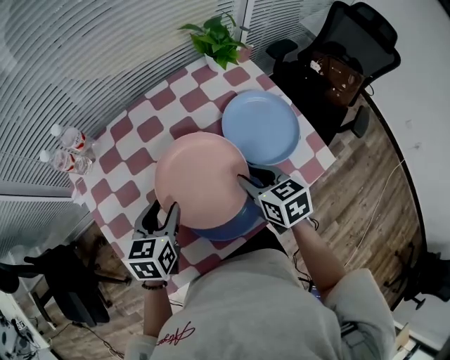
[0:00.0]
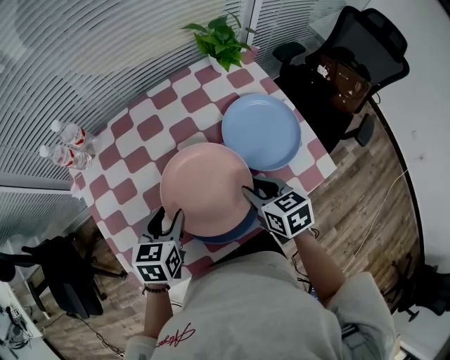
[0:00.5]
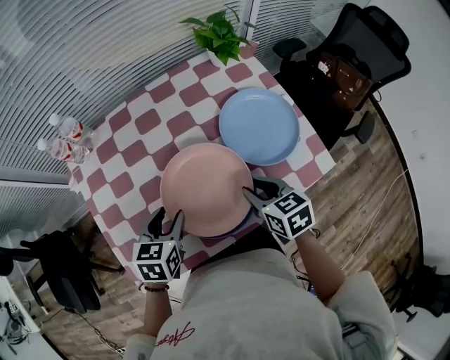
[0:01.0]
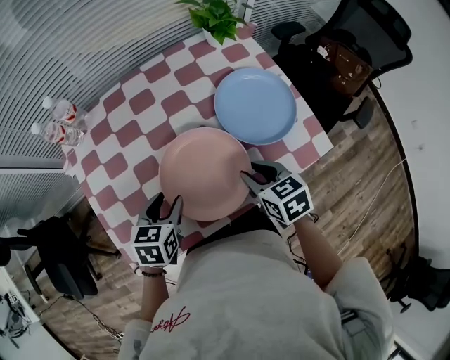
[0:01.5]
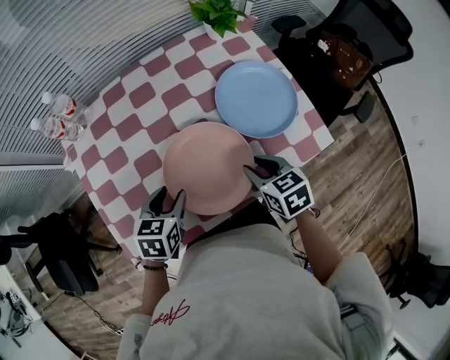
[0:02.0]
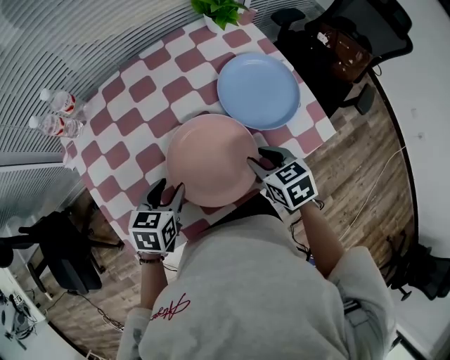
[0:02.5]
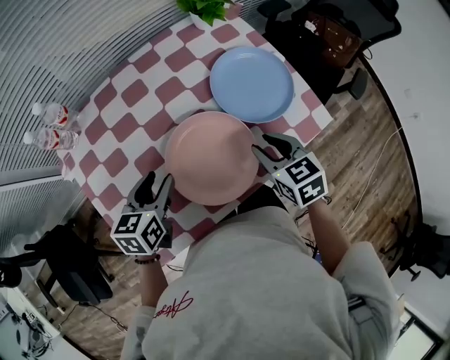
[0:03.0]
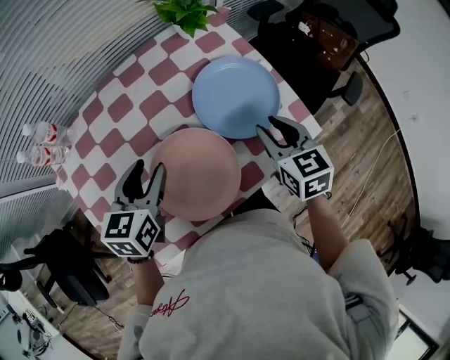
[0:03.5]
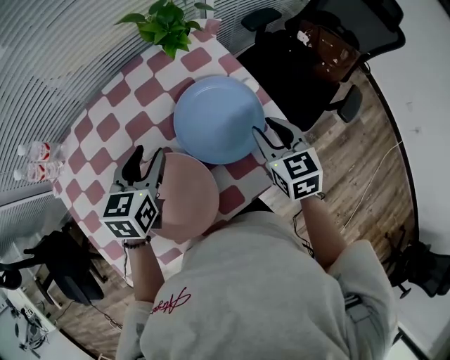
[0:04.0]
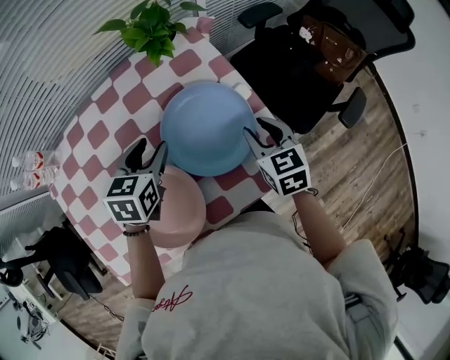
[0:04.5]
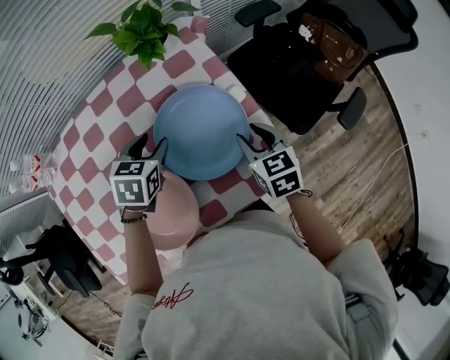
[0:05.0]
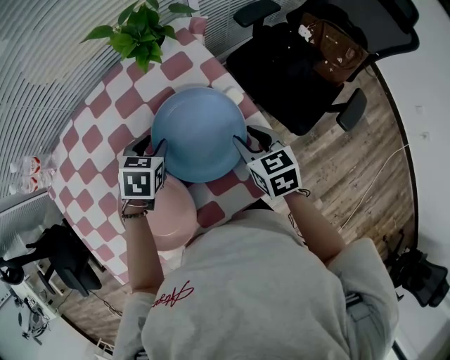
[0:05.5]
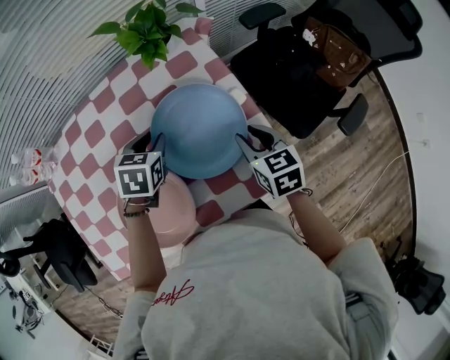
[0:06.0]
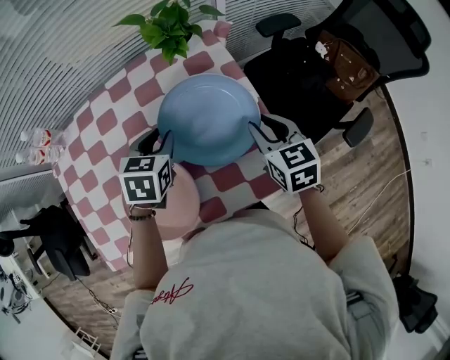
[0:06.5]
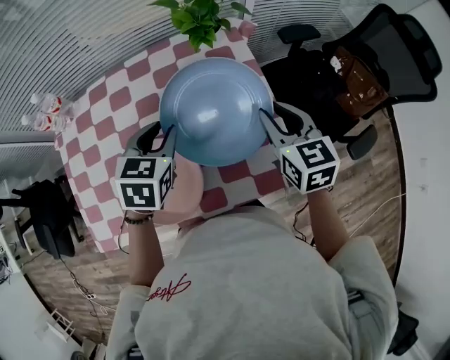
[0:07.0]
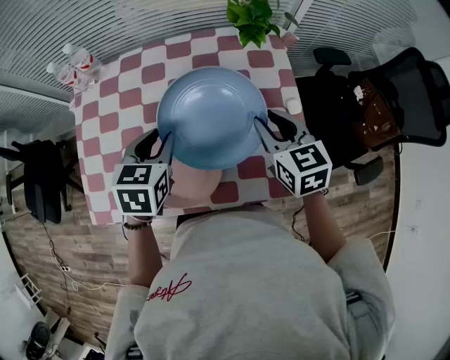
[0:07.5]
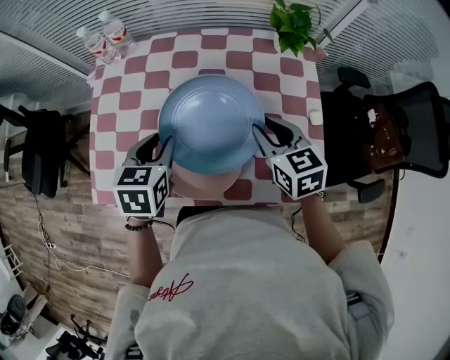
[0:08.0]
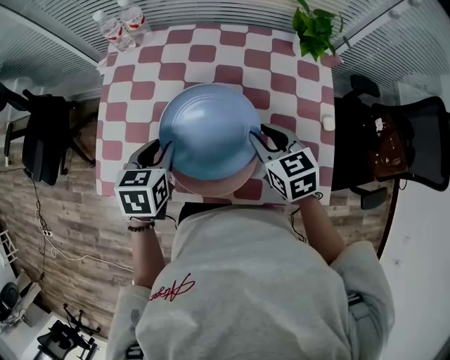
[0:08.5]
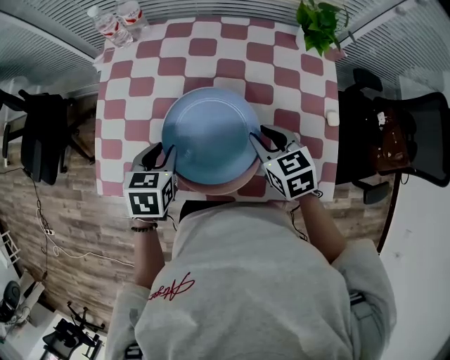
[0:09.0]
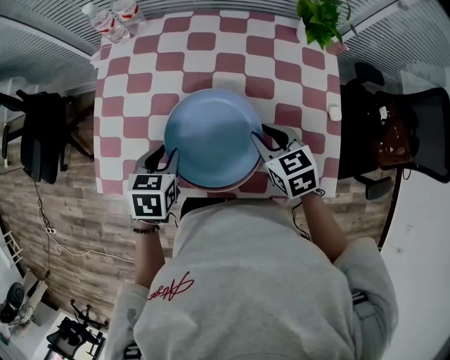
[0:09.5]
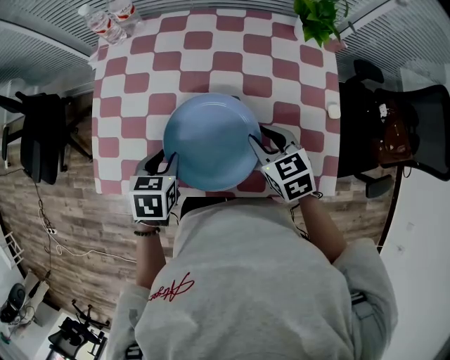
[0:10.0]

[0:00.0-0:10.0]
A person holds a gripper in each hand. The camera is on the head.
0:00.0 to 0:02.0: Both grippers move backward, about 5 cm.
0:02.0 to 0:04.0: The left gripper goes roughly 25 cm forward, to the right and upward. The right gripper shifts roughly 20 cm to the right, forward and upward, and changes its angle by approximately 20 degrees.
0:04.0 to 0:06.0: The right gripper goes about 5 cm downward. The left gripper is displaced downward, to the right and forward by approximately 15 cm, and swivels approximately 20 degrees.
0:06.0 to 0:08.0: The left gripper changes place by approximately 25 cm, and turns by roughly 30 degrees. The right gripper moves about 20 cm, and turns by approximately 30 degrees.
0:08.0 to 0:10.0: The right gripper moves downward and to the left, roughly 10 cm, while the left gripper travels downward, backward and to the left by some 10 cm.

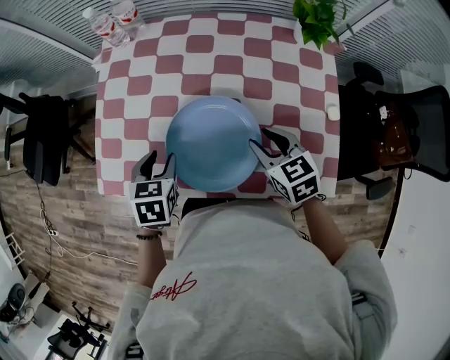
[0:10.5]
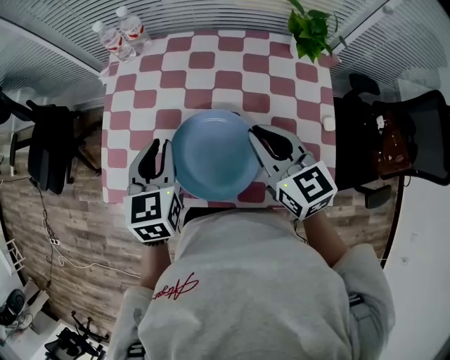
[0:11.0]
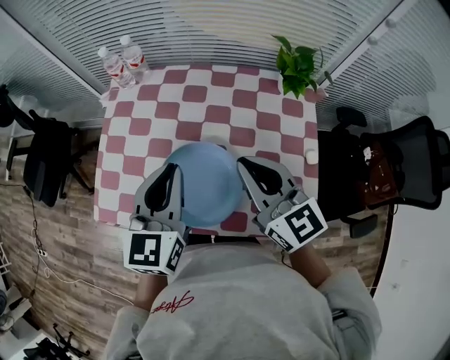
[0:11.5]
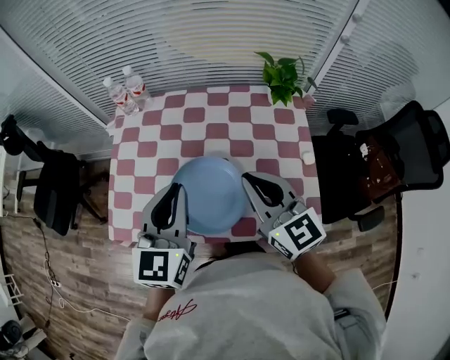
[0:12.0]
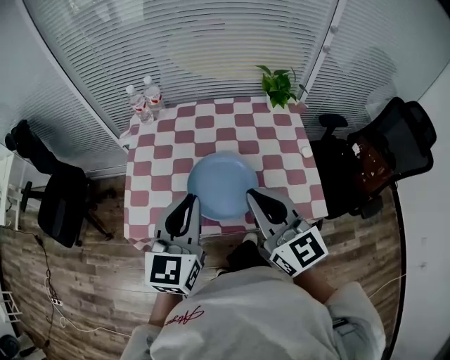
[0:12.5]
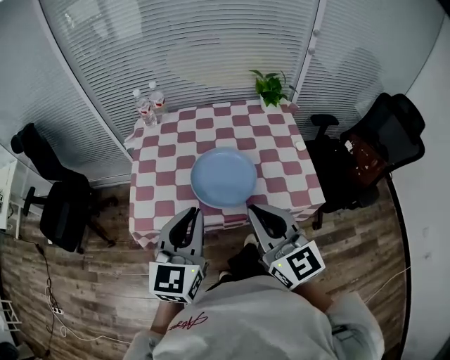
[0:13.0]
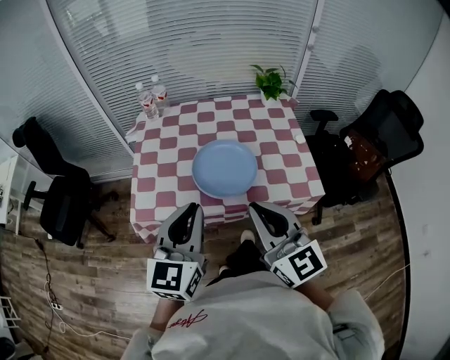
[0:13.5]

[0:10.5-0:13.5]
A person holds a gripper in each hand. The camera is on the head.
0:10.5 to 0:12.0: The grippers both shift upward by approximately 20 cm. The right gripper tilts its fingers roughly 30 degrees upward, and closes up, while the left gripper tilts its fingers some 40 degrees upward, and closes its fingers.
0:12.0 to 0:13.5: The left gripper travels backward by about 20 cm; the right gripper goes approximately 25 cm backward and to the left.

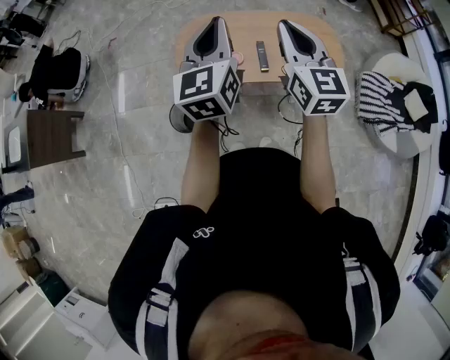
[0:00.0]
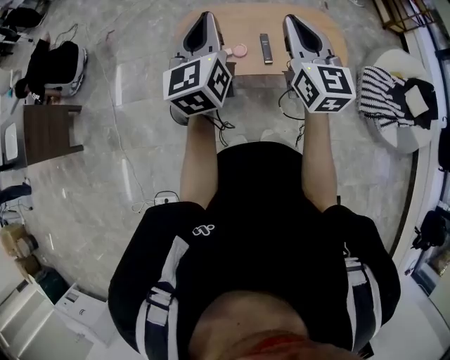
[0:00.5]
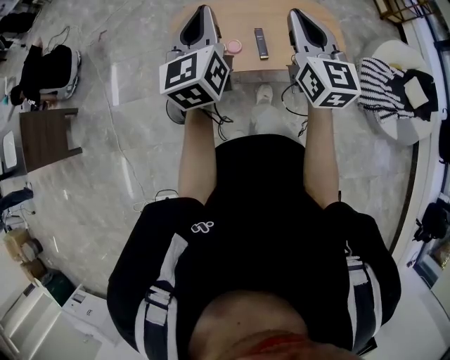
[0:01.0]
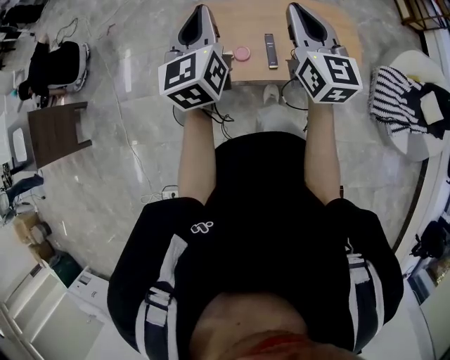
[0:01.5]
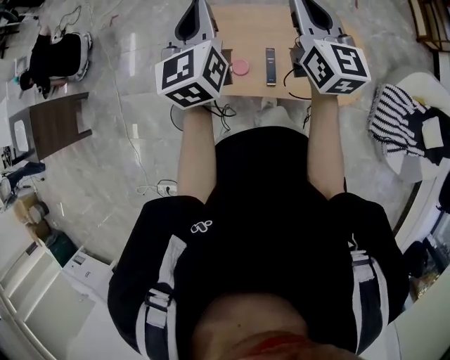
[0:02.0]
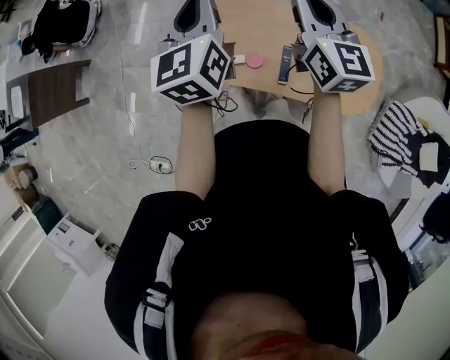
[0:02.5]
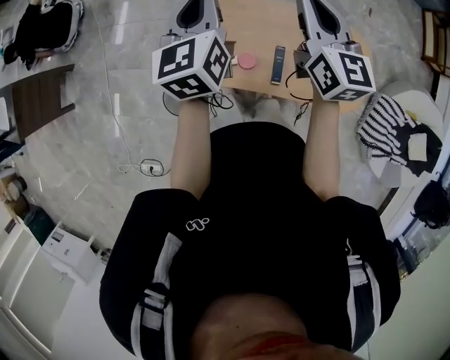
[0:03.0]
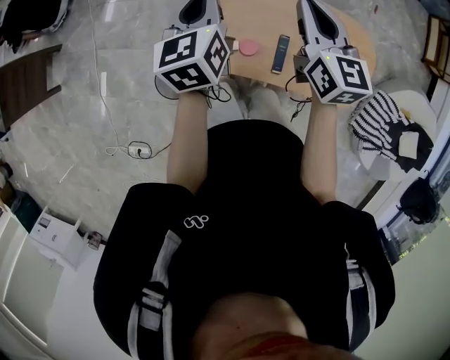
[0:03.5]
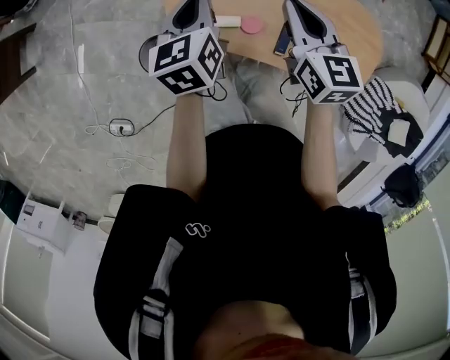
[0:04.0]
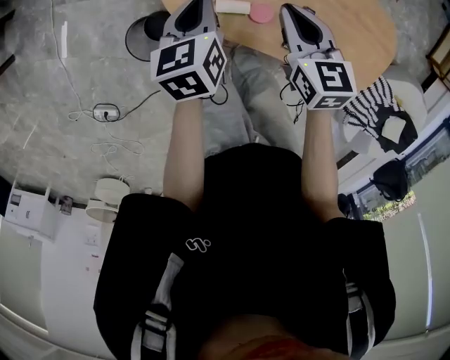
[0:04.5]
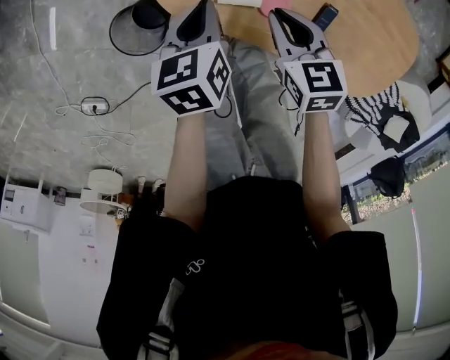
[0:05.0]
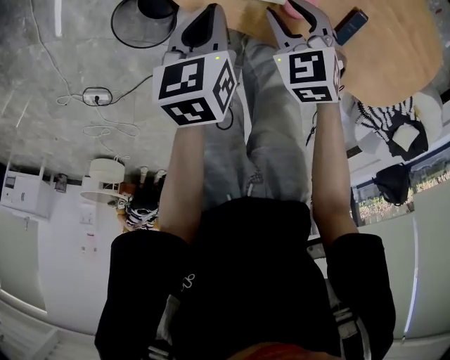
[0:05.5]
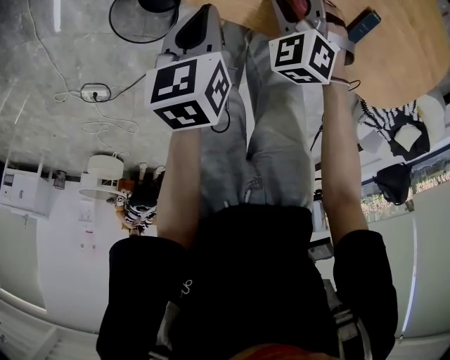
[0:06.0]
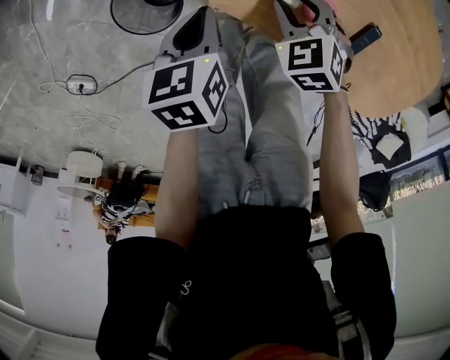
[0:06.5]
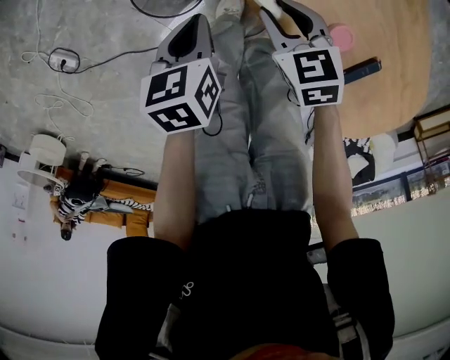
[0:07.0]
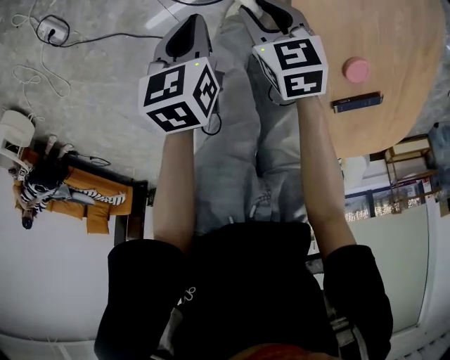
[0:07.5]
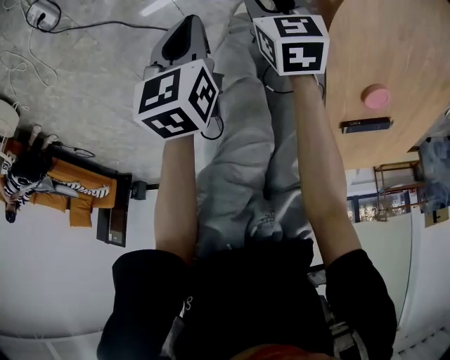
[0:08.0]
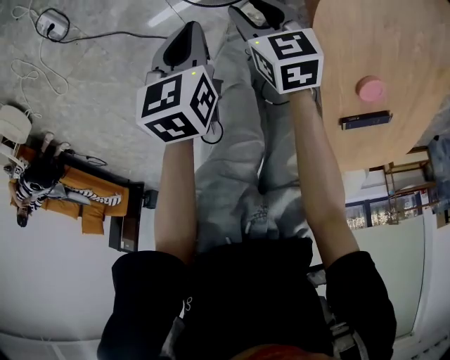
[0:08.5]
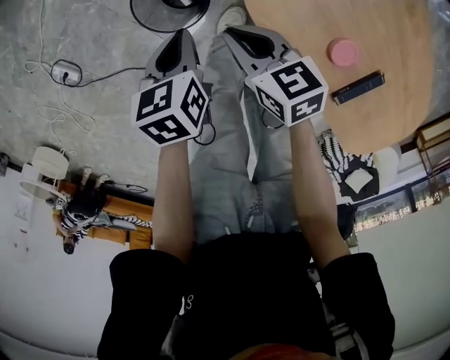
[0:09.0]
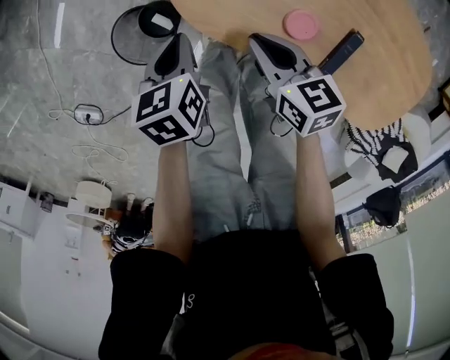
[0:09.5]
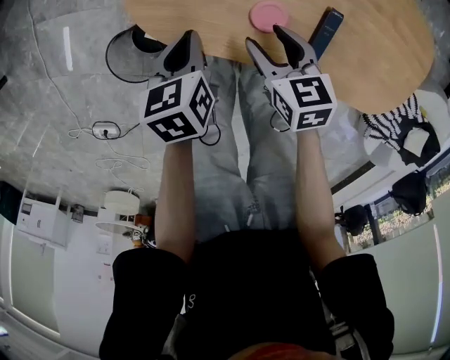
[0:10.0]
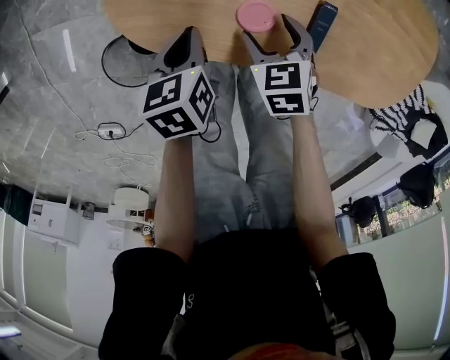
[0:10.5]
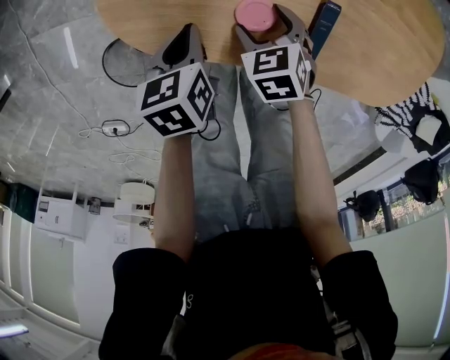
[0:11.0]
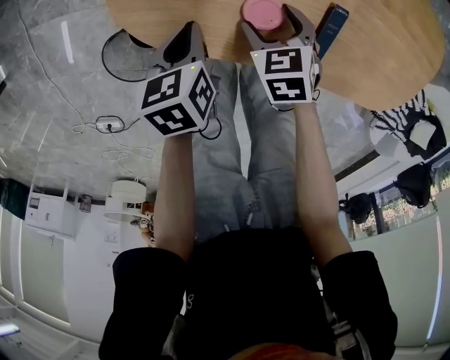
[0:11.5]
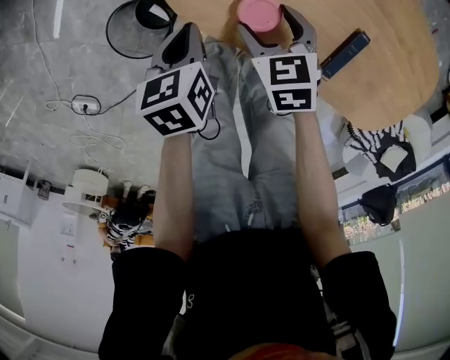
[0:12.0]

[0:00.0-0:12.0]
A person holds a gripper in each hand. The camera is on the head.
0:00.0 to 0:02.0: The grippers both shift forward by roughly 30 cm.
0:02.0 to 0:04.0: Both grippers move downward and to the left, some 30 cm. The left gripper turns by approximately 30 degrees. Meanwhile the right gripper rotates about 30 degrees.
0:04.0 to 0:06.0: Both grippers travel together downward, roughly 35 cm. The left gripper rotates some 30 degrees; the right gripper angles its fingers downward, by some 40 degrees, and opens.
0:06.0 to 0:08.0: The right gripper changes place by roughly 35 cm, and swivels approximately 30 degrees; the left gripper changes place by about 30 cm, and swivels approximately 50 degrees.
0:08.0 to 0:10.0: The right gripper shifts by roughly 40 cm, and changes its angle by roughly 50 degrees. Meanwhile the left gripper moves about 35 cm, and twists about 40 degrees clockwise, seen from behind.
0:10.0 to 0:12.0: Both grippers travel together to the left, approximately 5 cm. The right gripper swivels some 20 degrees.

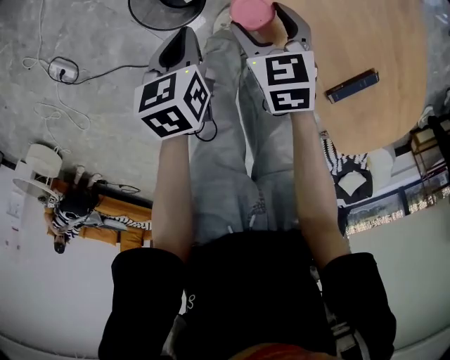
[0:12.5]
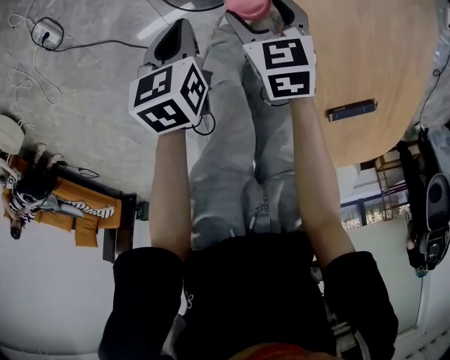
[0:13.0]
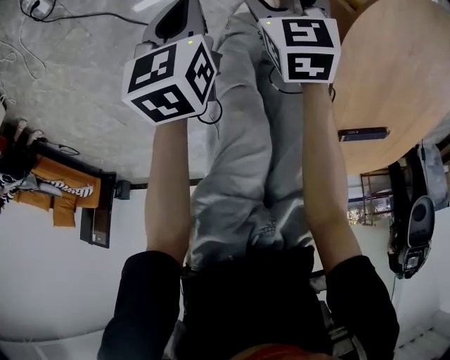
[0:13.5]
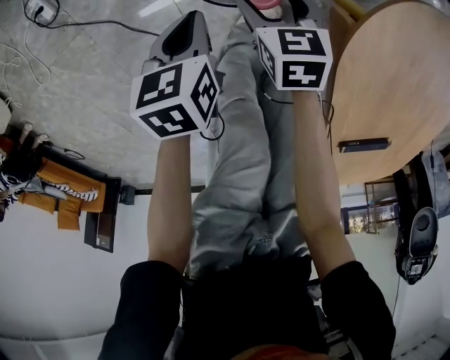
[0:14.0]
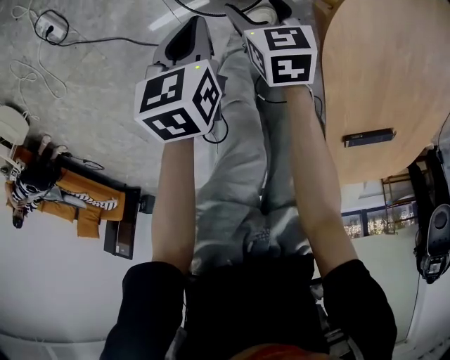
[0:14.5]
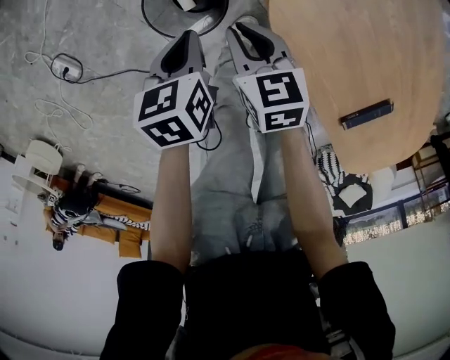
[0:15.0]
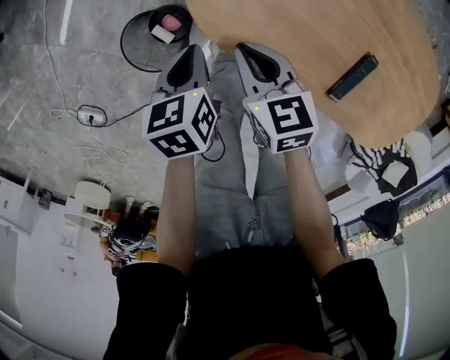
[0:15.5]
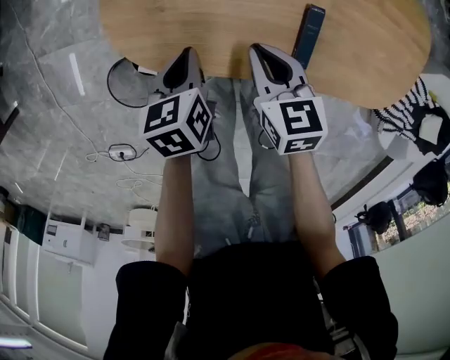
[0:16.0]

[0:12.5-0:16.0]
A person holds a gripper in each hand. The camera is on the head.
0:12.5 to 0:14.5: The right gripper goes roughly 20 cm downward, to the left and forward. The left gripper is displaced to the left and downward by approximately 15 cm.
0:14.5 to 0:16.0: The left gripper shifts by roughly 35 cm, and twists about 40 degrees clockwise, seen from behind. Meanwhile the right gripper changes place by roughly 40 cm, rotates approximately 60 degrees, and closes.
